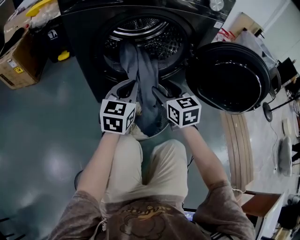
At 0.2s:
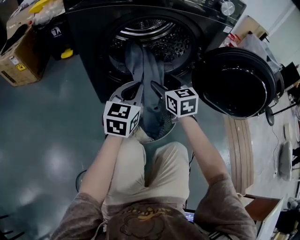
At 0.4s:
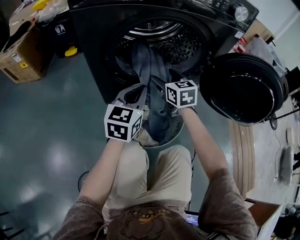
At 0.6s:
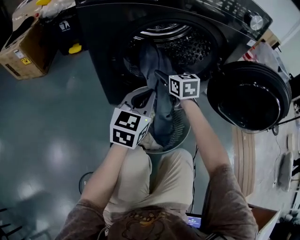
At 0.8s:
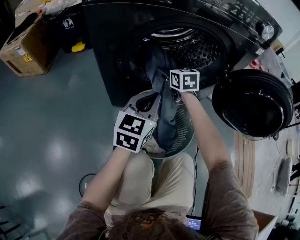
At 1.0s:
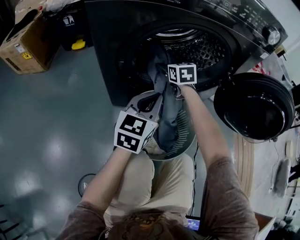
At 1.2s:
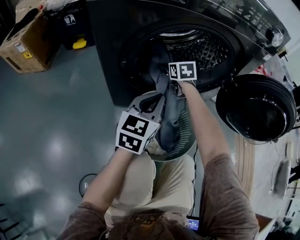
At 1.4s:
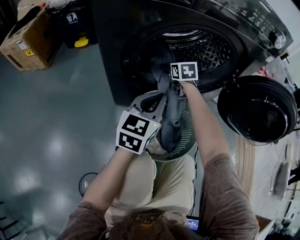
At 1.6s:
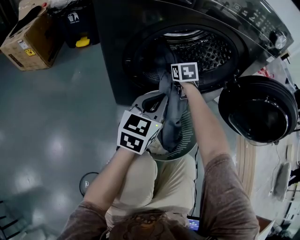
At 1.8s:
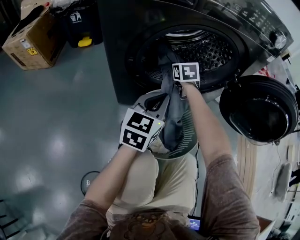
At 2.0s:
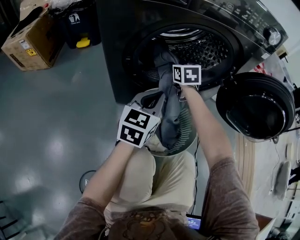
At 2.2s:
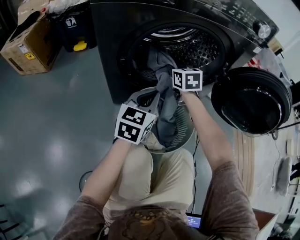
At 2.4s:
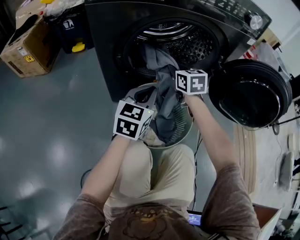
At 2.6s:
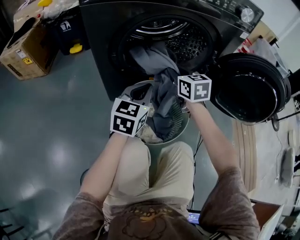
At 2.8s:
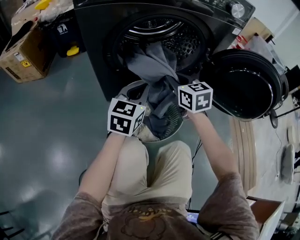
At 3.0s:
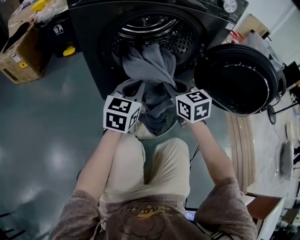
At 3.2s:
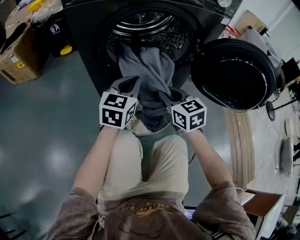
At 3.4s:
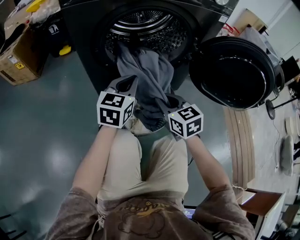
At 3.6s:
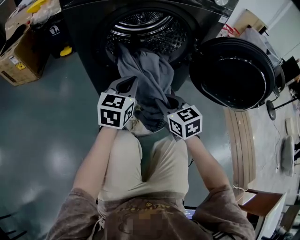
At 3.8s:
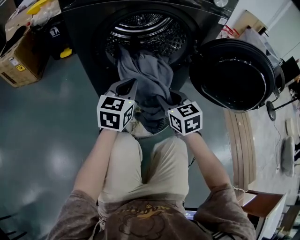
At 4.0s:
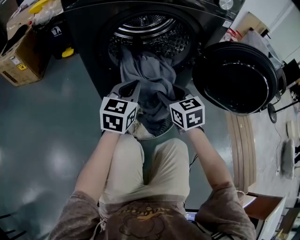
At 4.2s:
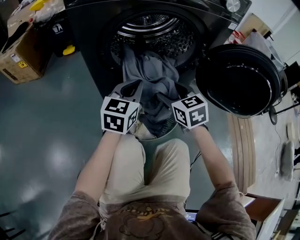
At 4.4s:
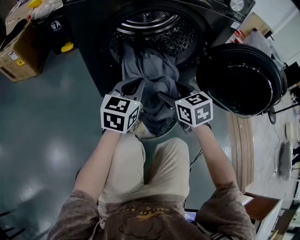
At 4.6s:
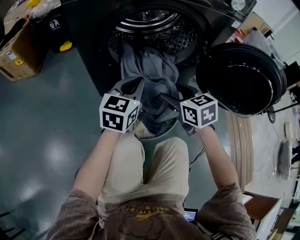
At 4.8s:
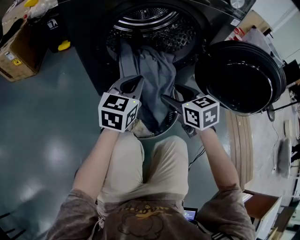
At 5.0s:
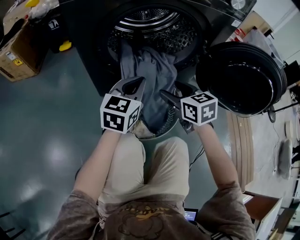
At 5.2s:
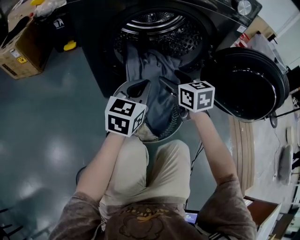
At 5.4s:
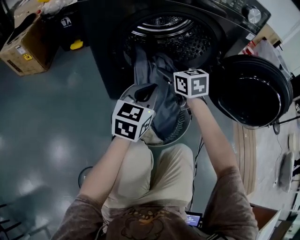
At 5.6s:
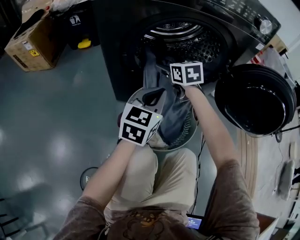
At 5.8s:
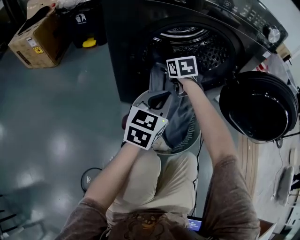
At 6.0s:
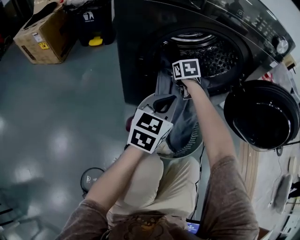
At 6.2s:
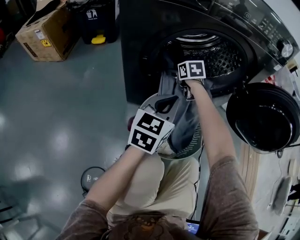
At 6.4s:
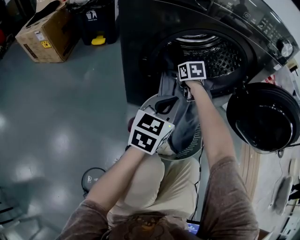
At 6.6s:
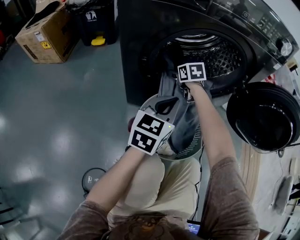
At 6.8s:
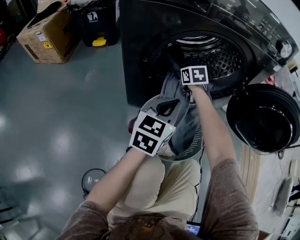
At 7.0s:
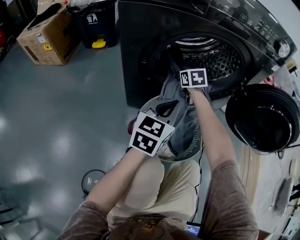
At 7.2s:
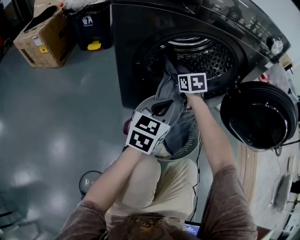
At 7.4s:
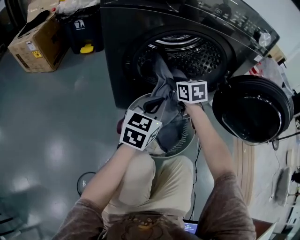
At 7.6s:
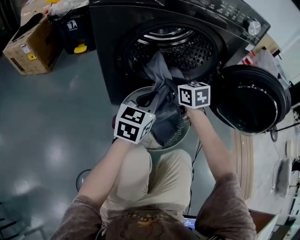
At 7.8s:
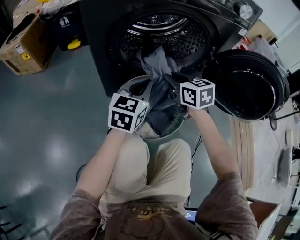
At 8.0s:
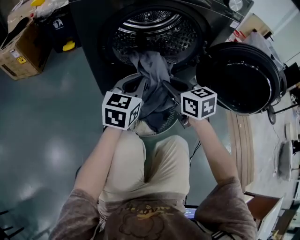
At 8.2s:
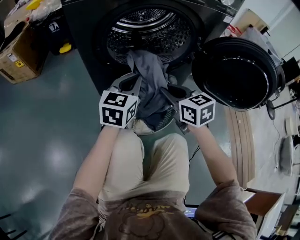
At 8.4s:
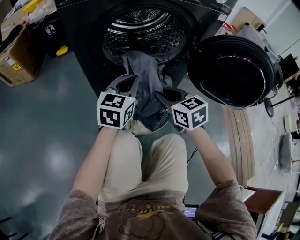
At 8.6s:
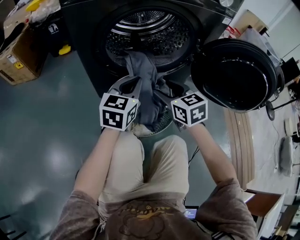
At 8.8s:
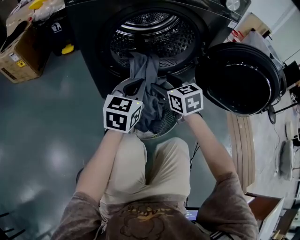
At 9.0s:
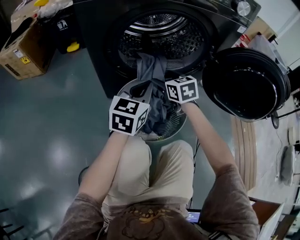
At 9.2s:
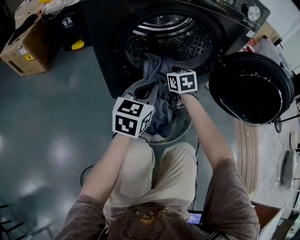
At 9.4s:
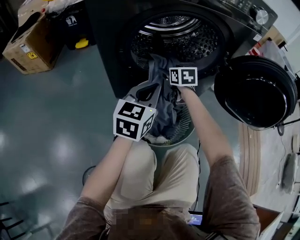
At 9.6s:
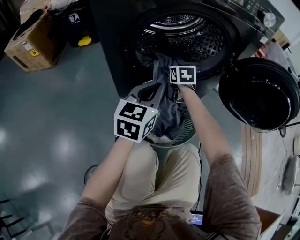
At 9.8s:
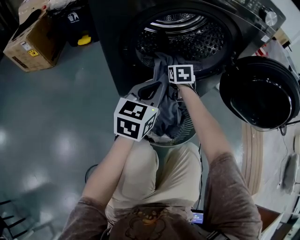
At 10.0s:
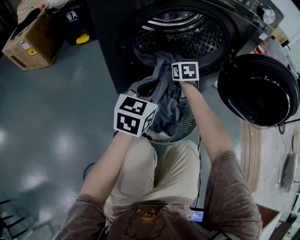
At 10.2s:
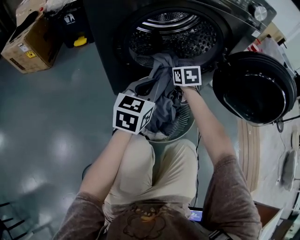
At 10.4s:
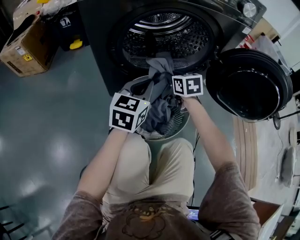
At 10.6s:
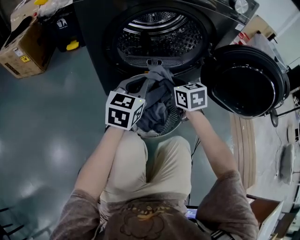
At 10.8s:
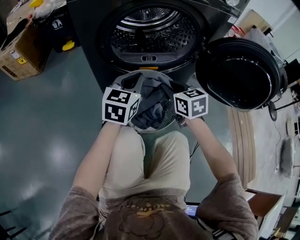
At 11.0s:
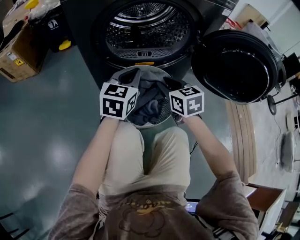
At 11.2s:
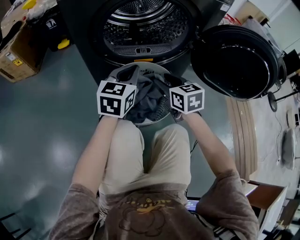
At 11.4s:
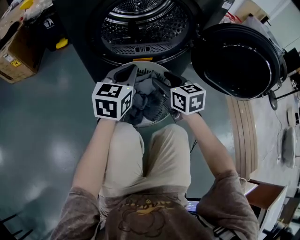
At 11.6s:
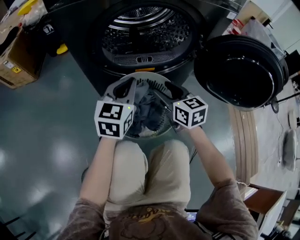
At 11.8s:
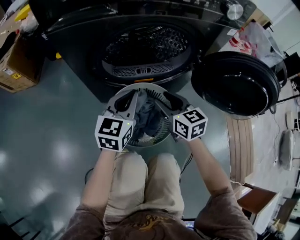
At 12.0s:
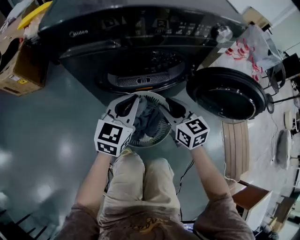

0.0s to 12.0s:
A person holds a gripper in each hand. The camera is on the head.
0.0s to 1.6s: The left gripper changes place by approximately 5 cm. Meanwhile the right gripper heads forward and downward, covering roughly 25 cm.
1.6s to 3.0s: The right gripper shifts roughly 25 cm backward and upward, and closes.
3.0s to 4.4s: The right gripper opens its fingers.
4.4s to 6.0s: The right gripper heads forward and to the left, covering about 25 cm.
6.0s to 7.6s: The right gripper moves backward, upward and to the right, some 15 cm, and closes.
7.6s to 9.0s: The right gripper travels backward and back again, roughly 15 cm each way, and opens its fingers.
9.0s to 10.4s: The right gripper travels forward and back again, some 10 cm each way, and closes up.
10.4s to 12.0s: The left gripper goes approximately 15 cm upward, while the right gripper moves upward and backward, some 20 cm.

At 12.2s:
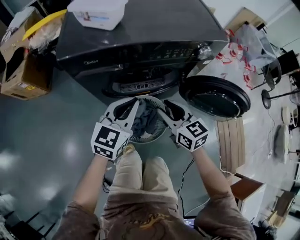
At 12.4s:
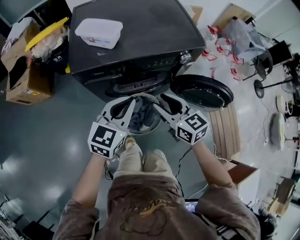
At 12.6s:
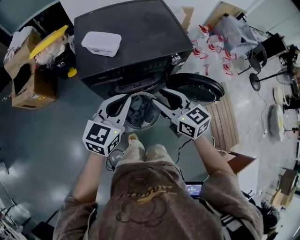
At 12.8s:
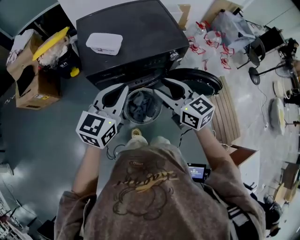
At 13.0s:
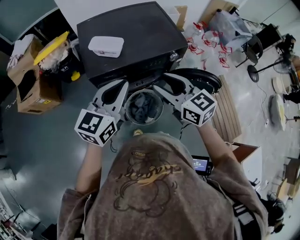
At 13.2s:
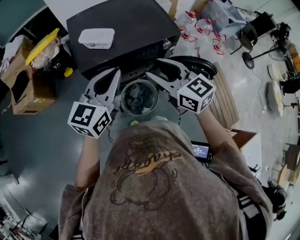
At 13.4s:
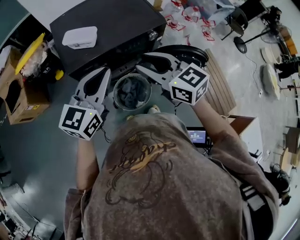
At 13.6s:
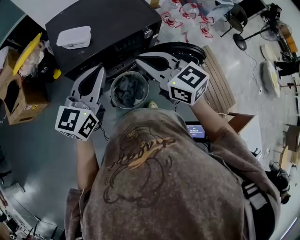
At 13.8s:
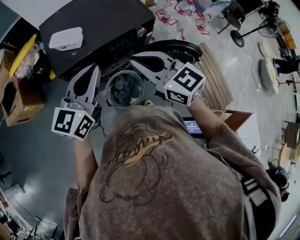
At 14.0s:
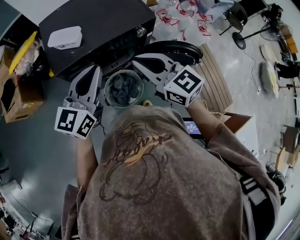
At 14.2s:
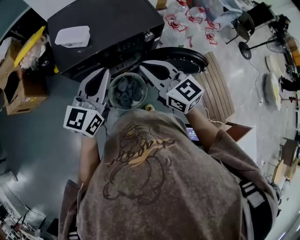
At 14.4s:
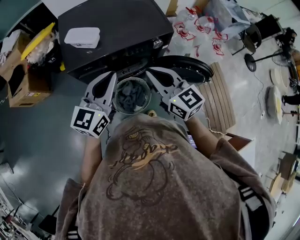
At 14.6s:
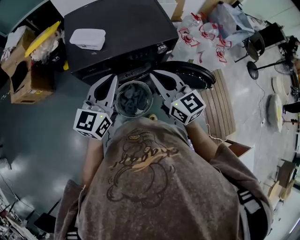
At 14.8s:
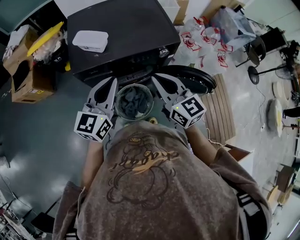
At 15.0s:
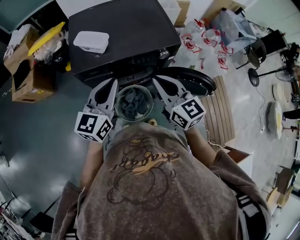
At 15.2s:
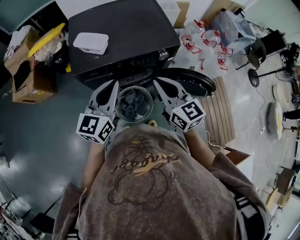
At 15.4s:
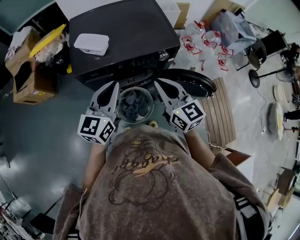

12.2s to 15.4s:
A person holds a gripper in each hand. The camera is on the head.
12.2s to 13.8s: Both grippers move upward, roughly 35 cm.
13.8s to 15.4s: Both grippers move downward, some 5 cm.

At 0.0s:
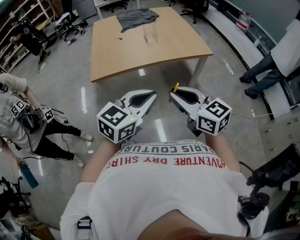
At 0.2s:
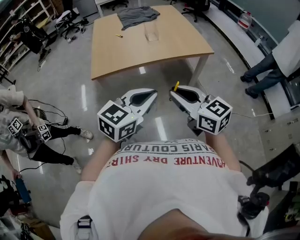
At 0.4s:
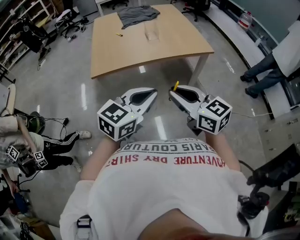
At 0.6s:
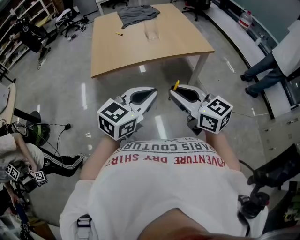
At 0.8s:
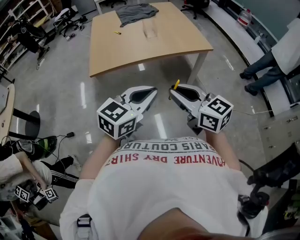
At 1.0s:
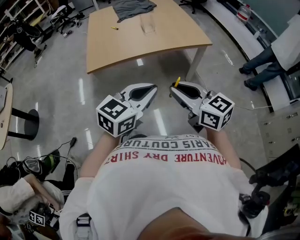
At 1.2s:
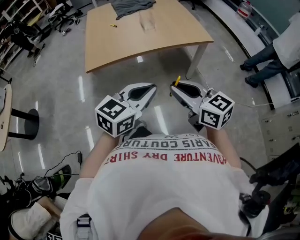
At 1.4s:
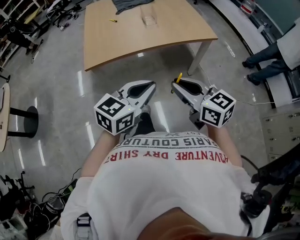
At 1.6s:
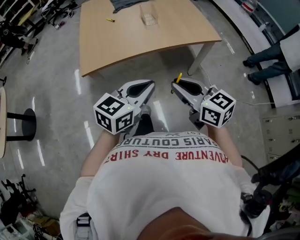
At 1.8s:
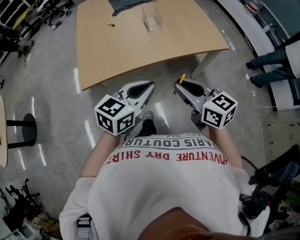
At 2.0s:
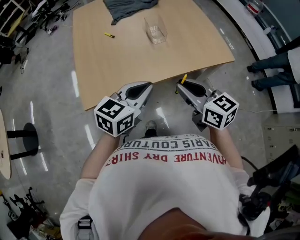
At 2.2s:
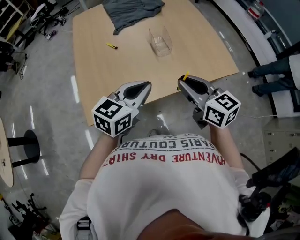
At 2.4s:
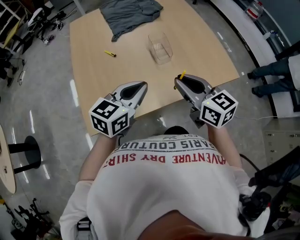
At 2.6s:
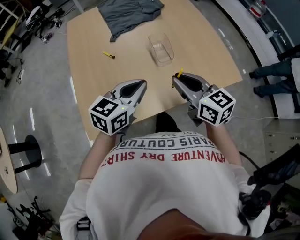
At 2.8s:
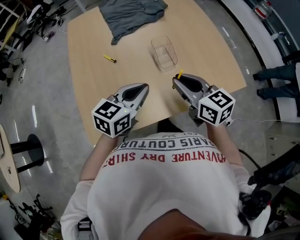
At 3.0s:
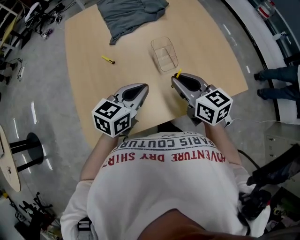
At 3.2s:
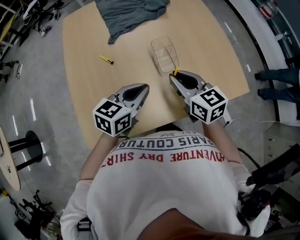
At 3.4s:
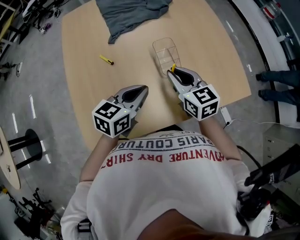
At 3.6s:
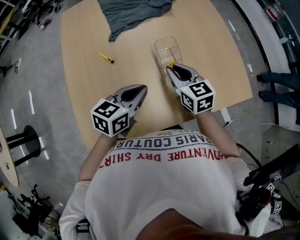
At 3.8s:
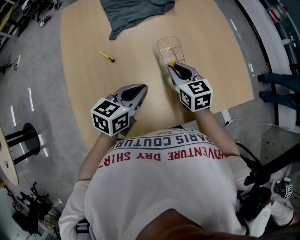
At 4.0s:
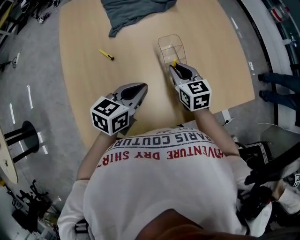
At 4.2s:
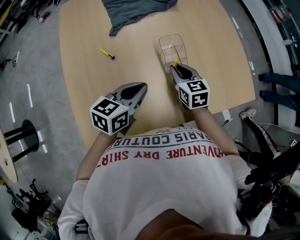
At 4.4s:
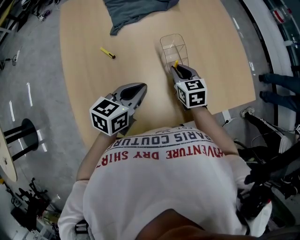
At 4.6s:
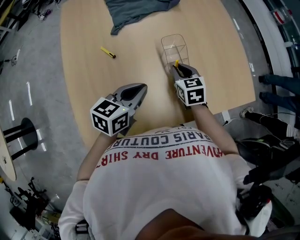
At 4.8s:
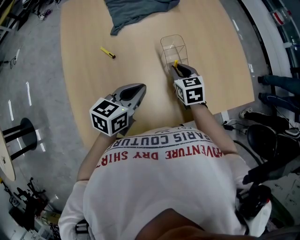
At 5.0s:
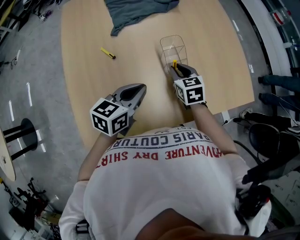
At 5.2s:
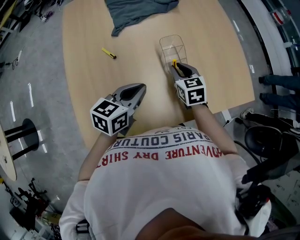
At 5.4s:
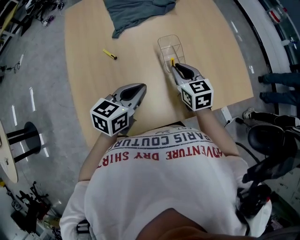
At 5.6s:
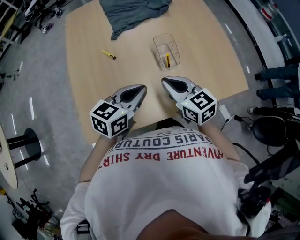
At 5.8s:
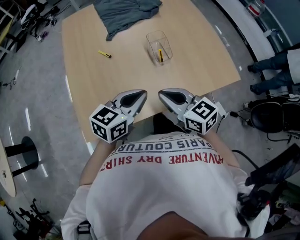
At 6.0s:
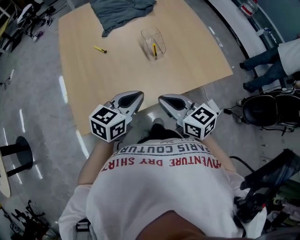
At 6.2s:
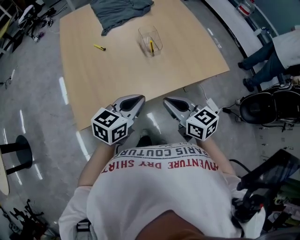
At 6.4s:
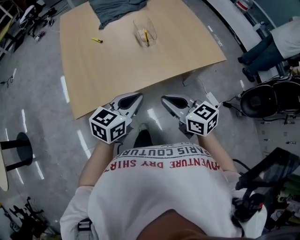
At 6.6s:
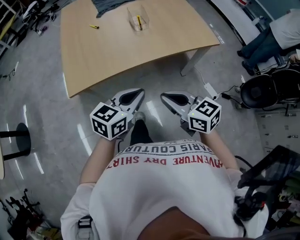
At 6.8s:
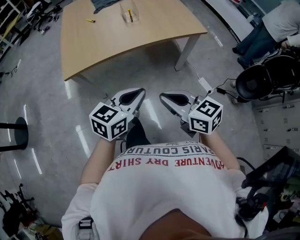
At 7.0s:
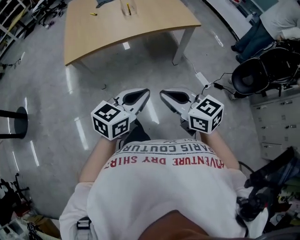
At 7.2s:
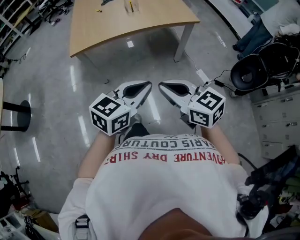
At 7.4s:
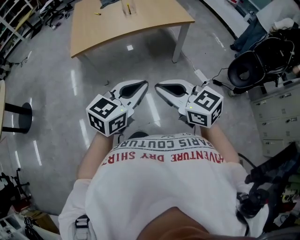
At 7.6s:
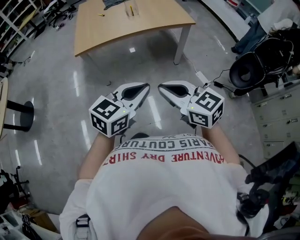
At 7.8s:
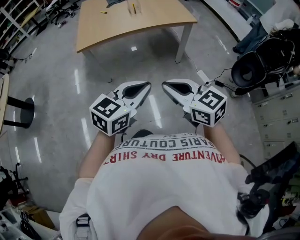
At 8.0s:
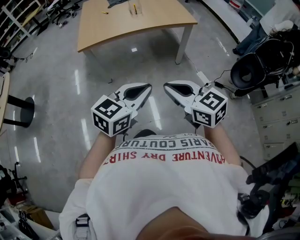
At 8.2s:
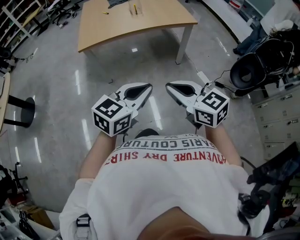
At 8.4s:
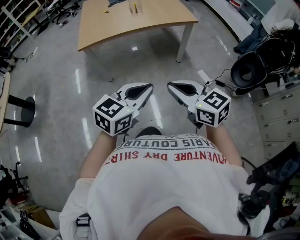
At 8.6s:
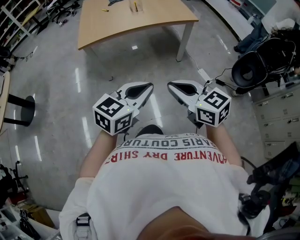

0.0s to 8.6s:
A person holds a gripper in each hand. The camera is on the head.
0.0s to 1.4s: The two grippers go approximately 5 cm forward.
1.4s to 2.8s: Both grippers are carried forward, approximately 60 cm.
2.8s to 4.4s: The right gripper moves downward and forward, about 25 cm, and turns by about 20 degrees. Meanwhile the left gripper heads forward and downward, covering about 15 cm.
4.4s to 5.8s: The left gripper shifts approximately 15 cm backward and upward; the right gripper heads backward and upward, covering about 30 cm, and turns by approximately 30 degrees.
5.8s to 7.2s: Both grippers are carried backward, roughly 70 cm.
7.2s to 8.6s: The grippers both shift backward by about 10 cm.
